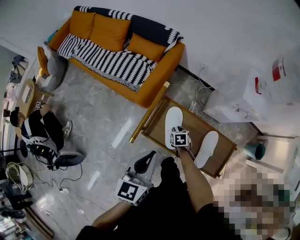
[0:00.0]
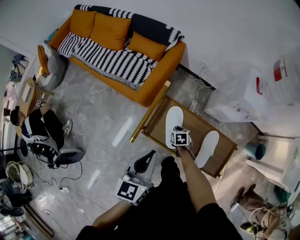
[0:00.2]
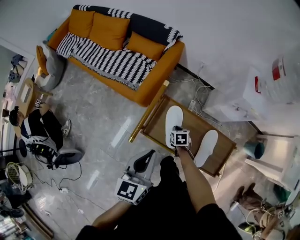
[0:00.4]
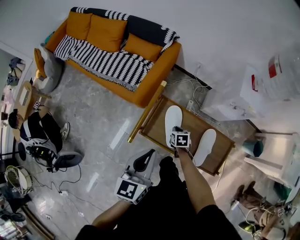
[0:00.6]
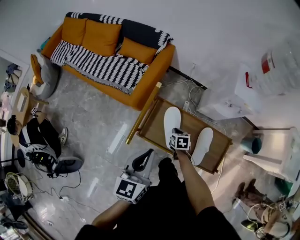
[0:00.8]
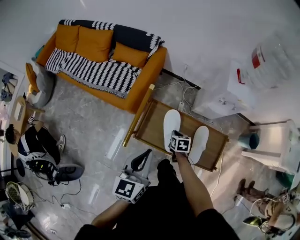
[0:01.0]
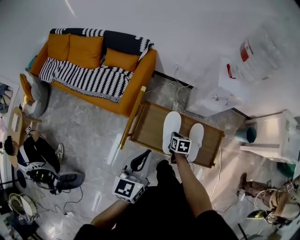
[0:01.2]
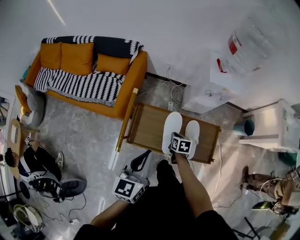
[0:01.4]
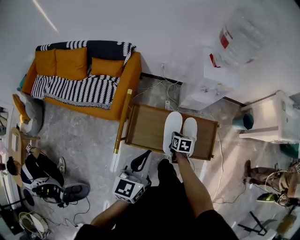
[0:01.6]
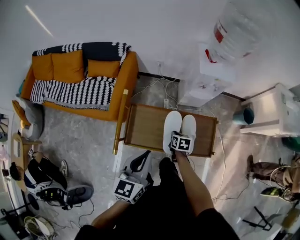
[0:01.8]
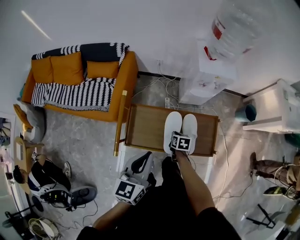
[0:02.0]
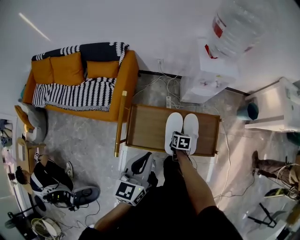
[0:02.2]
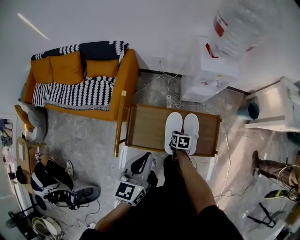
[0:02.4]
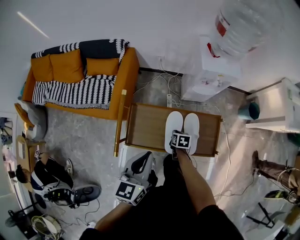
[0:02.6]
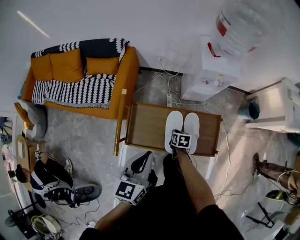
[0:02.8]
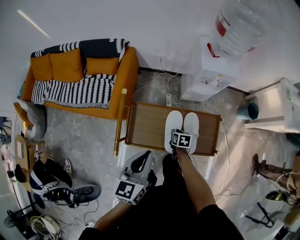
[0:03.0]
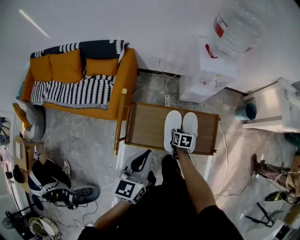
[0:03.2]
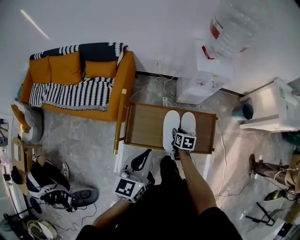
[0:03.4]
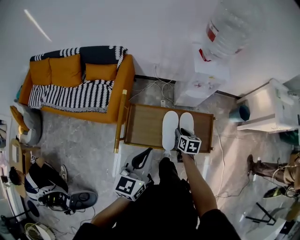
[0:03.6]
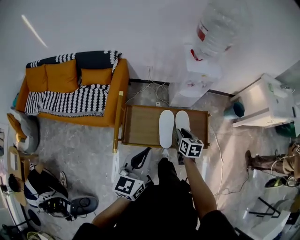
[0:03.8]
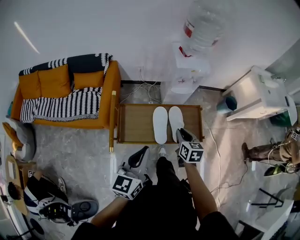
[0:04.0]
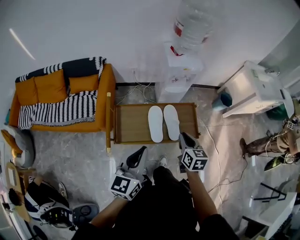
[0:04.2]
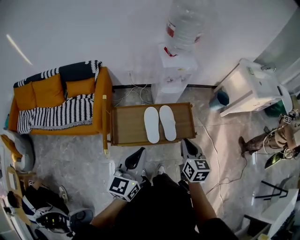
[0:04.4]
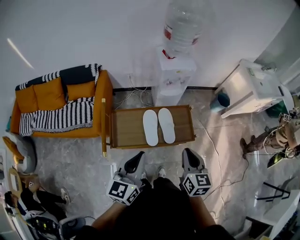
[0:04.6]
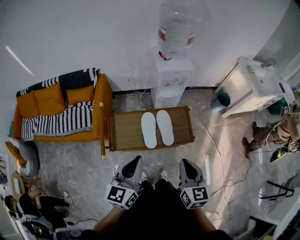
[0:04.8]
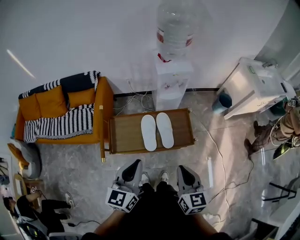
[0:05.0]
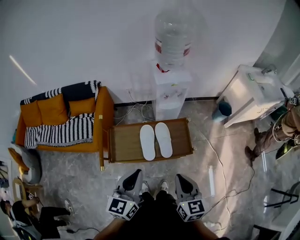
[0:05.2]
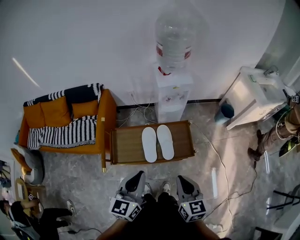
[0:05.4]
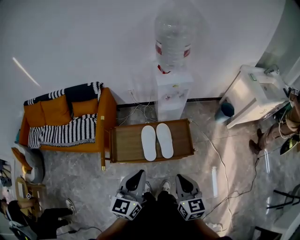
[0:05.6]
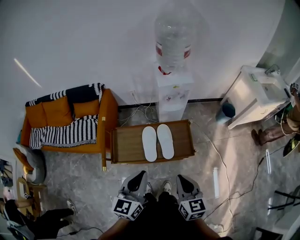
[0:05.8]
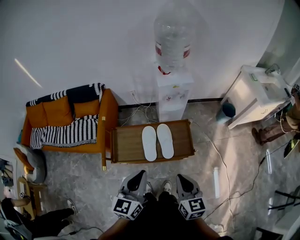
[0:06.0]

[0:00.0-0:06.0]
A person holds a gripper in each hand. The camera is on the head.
0:00.0 to 0:01.6: The left gripper is displaced to the right by approximately 5 cm, and turns by approximately 20 degrees, while the right gripper is displaced to the right, upward and backward by approximately 15 cm, swivels about 40 degrees, and closes up.
0:01.6 to 0:03.0: The right gripper heads downward, covering approximately 5 cm.
0:03.0 to 0:04.4: The left gripper shifts some 15 cm backward and upward. The right gripper goes approximately 35 cm upward and backward, and tips its fingers upward by some 30 degrees.
0:04.4 to 0:06.0: The left gripper travels to the right by some 10 cm. The right gripper goes some 5 cm backward.

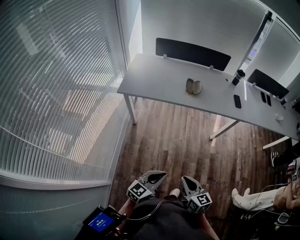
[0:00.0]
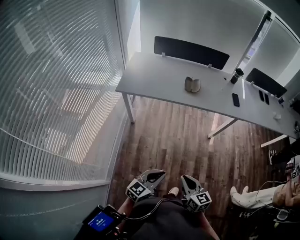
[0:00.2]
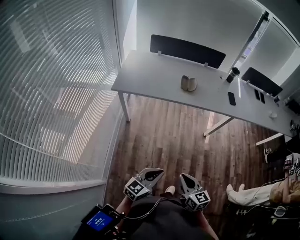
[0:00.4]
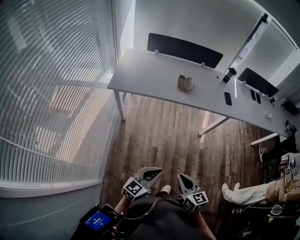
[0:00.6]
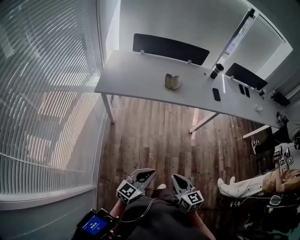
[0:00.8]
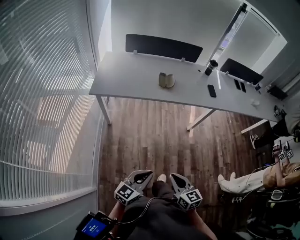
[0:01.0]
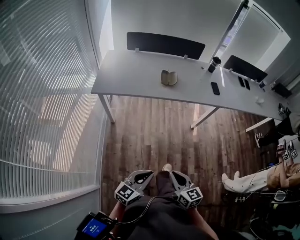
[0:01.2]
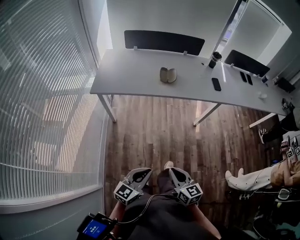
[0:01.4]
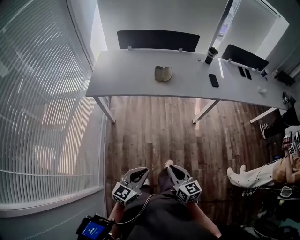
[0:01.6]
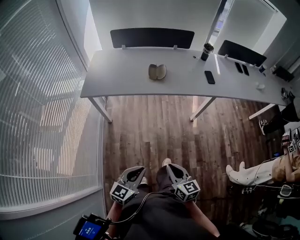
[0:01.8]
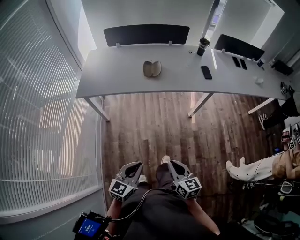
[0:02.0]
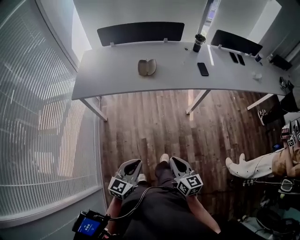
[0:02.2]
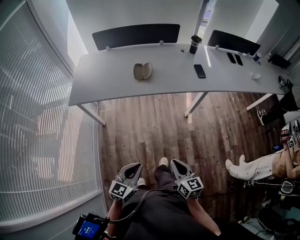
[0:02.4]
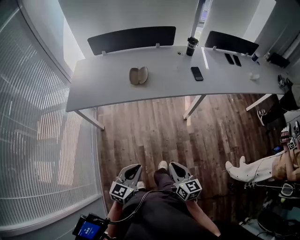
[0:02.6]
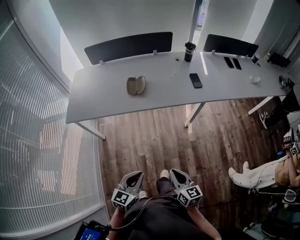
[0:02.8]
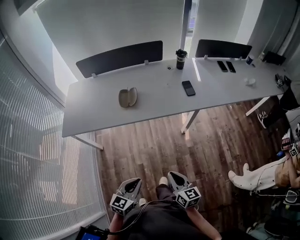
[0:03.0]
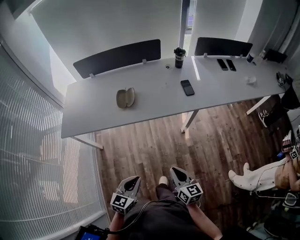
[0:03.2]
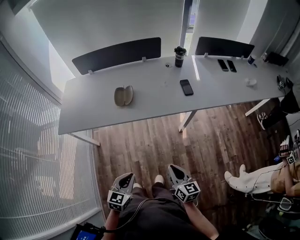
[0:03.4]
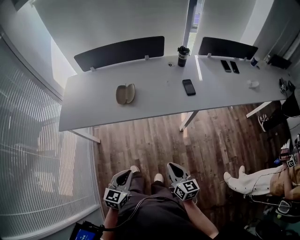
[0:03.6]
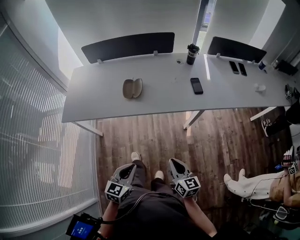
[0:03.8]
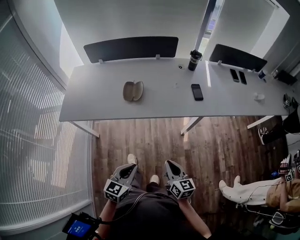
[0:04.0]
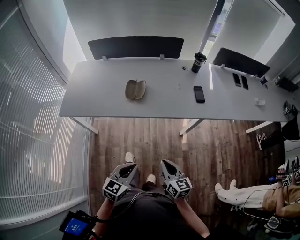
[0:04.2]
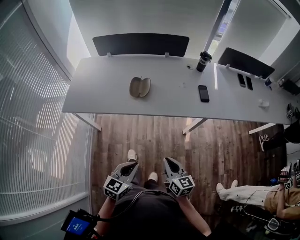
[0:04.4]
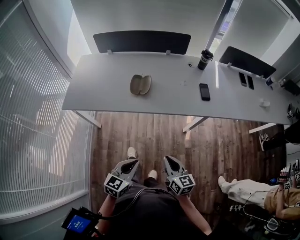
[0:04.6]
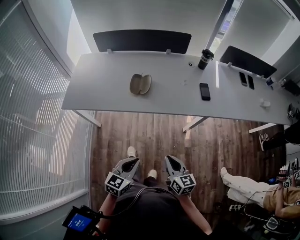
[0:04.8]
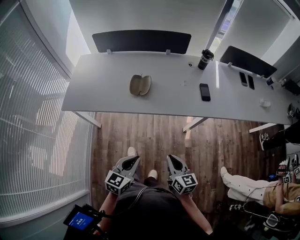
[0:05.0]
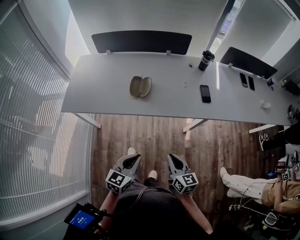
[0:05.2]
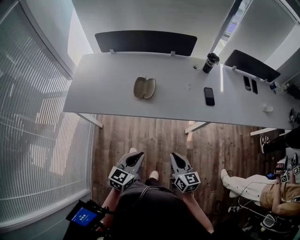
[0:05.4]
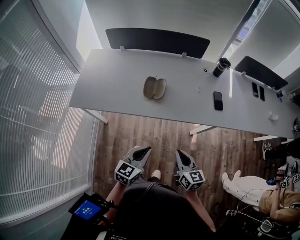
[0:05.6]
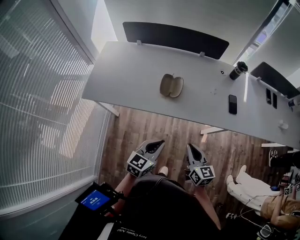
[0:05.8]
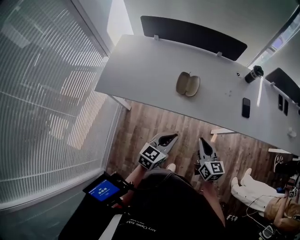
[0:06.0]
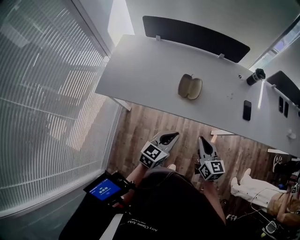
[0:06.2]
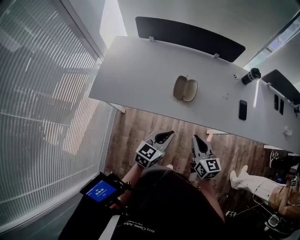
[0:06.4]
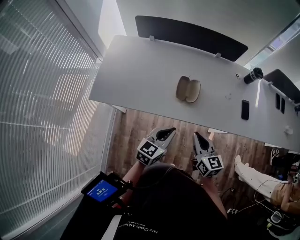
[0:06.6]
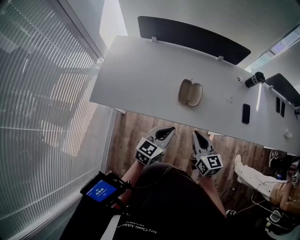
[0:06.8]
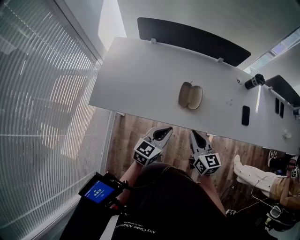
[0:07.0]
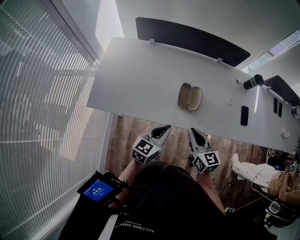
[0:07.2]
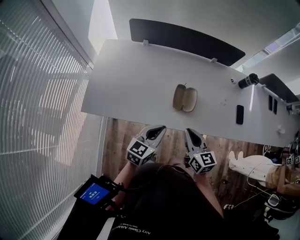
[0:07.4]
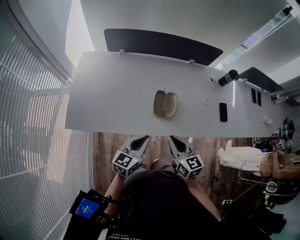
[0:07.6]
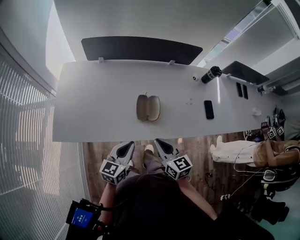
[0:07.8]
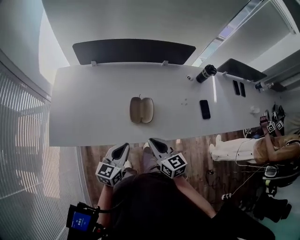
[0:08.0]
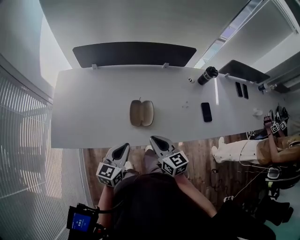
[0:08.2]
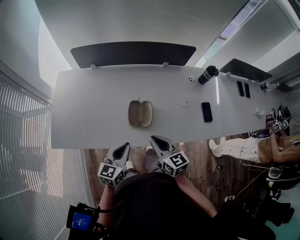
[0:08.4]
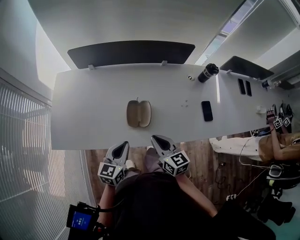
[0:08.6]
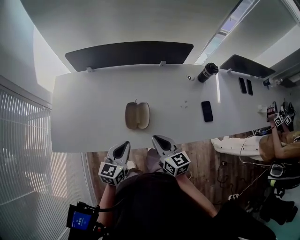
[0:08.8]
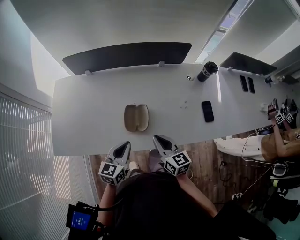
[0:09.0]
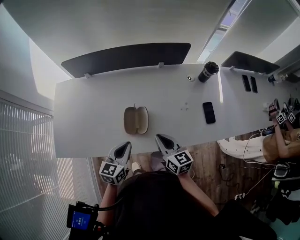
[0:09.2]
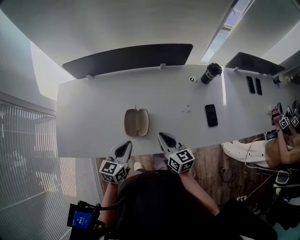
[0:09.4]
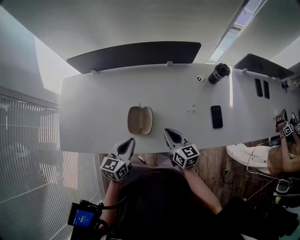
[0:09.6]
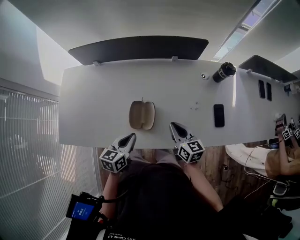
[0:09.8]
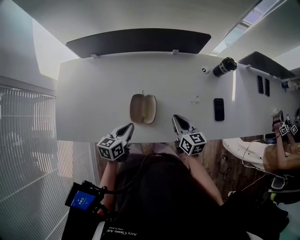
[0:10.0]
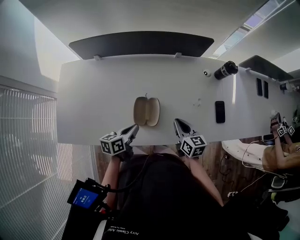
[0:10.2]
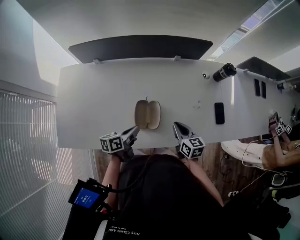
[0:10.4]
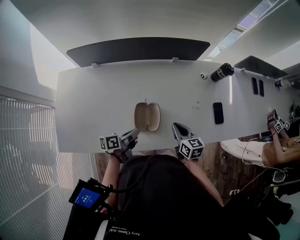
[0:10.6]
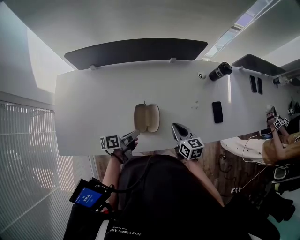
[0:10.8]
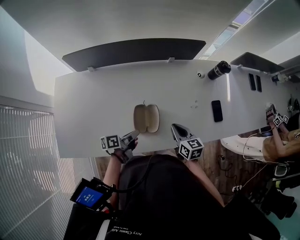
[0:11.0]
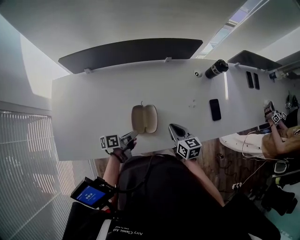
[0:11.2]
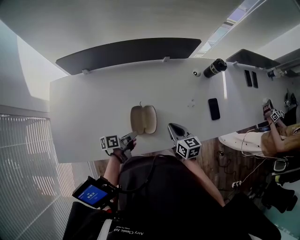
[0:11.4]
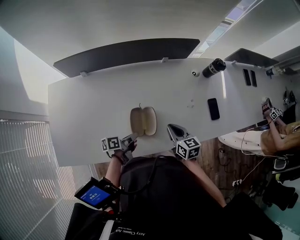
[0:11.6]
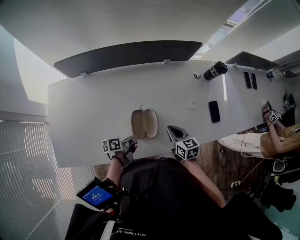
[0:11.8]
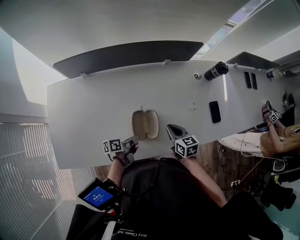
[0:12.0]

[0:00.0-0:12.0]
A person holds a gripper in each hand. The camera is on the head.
0:00.0 to 0:01.6: The right gripper shifts by some 5 cm.
0:01.6 to 0:03.0: The right gripper goes about 25 cm to the right and forward. Meanwhile the left gripper goes approximately 20 cm forward and to the right.
0:03.0 to 0:04.4: The grippers both shift forward by about 10 cm.
0:04.4 to 0:06.0: The right gripper heads forward and to the left, covering roughly 15 cm, while the left gripper is displaced forward by approximately 15 cm.
0:06.0 to 0:07.6: The right gripper is displaced to the left and forward by roughly 20 cm. The left gripper moves forward and to the left, about 20 cm.
0:07.6 to 0:09.0: The right gripper is displaced to the right and forward by some 10 cm; the left gripper moves forward and to the right, about 10 cm.
0:09.0 to 0:10.4: The right gripper moves downward, forward and to the right, approximately 10 cm, while the left gripper travels downward and forward by approximately 10 cm, and turns by about 40 degrees.
0:10.4 to 0:12.0: The left gripper heads downward, covering roughly 10 cm, and rotates roughly 20 degrees.

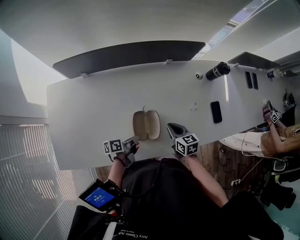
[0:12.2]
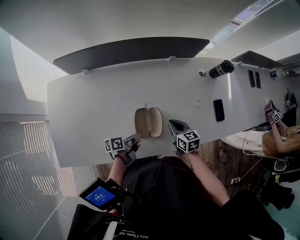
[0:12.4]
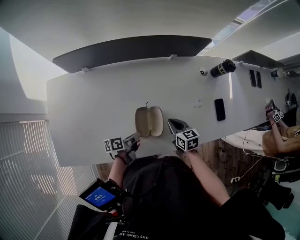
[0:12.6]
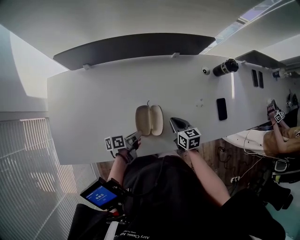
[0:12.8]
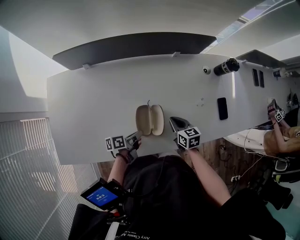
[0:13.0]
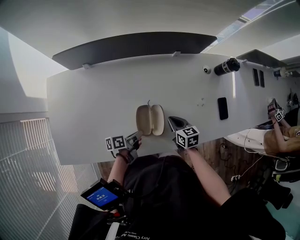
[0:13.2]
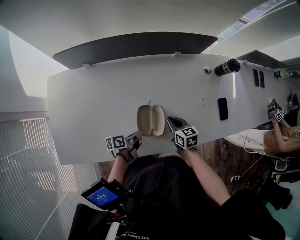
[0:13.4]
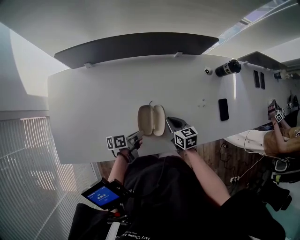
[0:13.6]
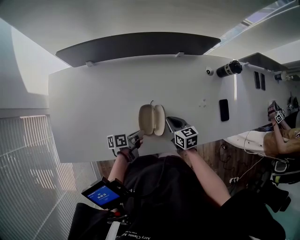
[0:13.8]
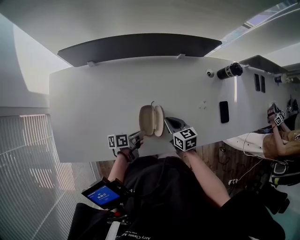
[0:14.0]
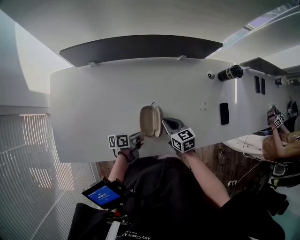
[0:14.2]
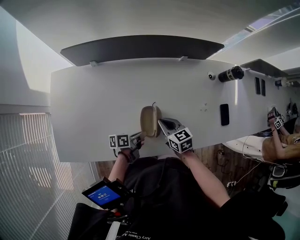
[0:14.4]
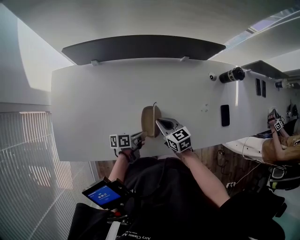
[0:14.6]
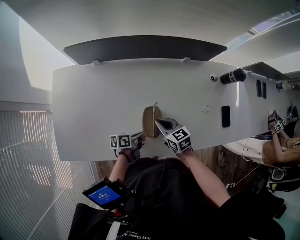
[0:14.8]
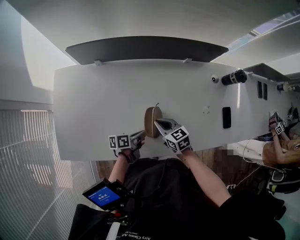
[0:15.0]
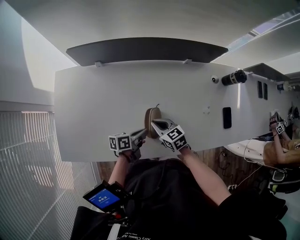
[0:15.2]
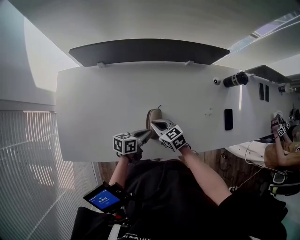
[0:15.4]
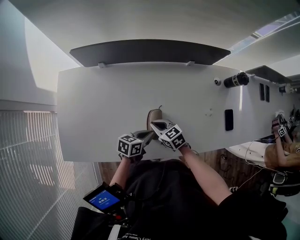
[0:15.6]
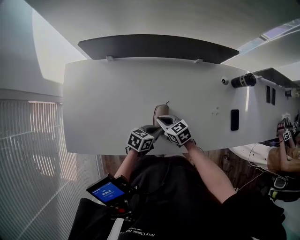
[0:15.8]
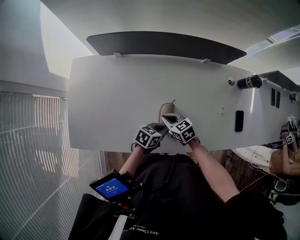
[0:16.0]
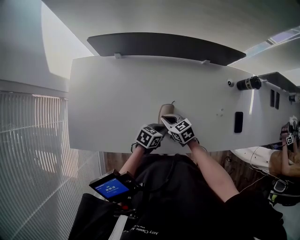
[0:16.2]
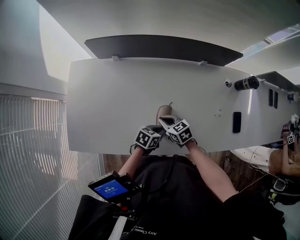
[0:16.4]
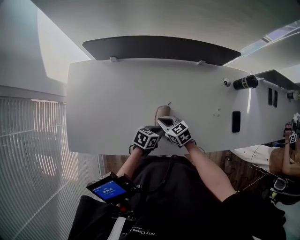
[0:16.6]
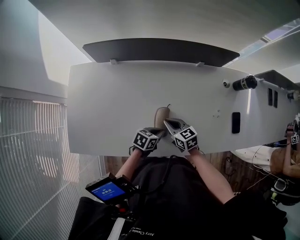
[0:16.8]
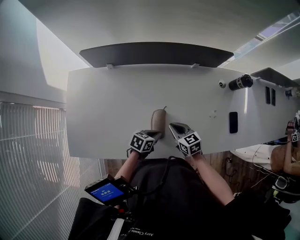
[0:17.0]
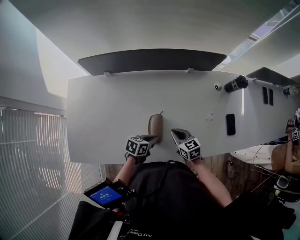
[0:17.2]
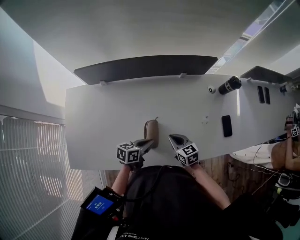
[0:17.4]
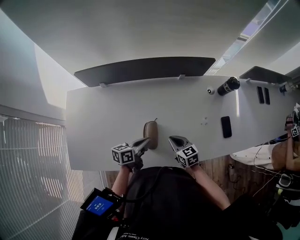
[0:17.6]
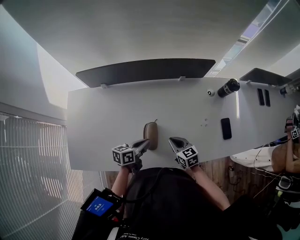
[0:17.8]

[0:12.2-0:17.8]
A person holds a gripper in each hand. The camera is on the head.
0:12.2 to 0:13.6: The right gripper moves about 5 cm.
0:13.6 to 0:15.0: The right gripper heads to the left, covering about 10 cm.
0:15.0 to 0:16.4: The right gripper changes place by about 5 cm; the left gripper rotates some 40 degrees.
0:16.4 to 0:17.8: The right gripper moves some 15 cm, while the left gripper travels upward by approximately 10 cm, and swivels some 20 degrees.
